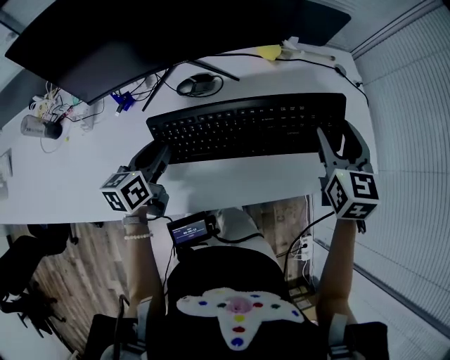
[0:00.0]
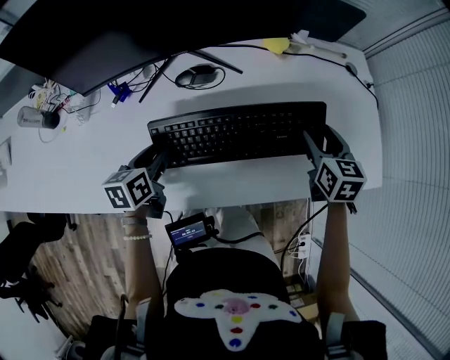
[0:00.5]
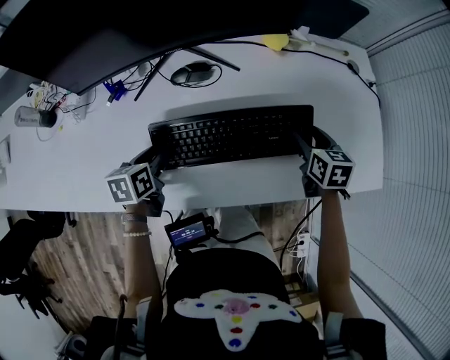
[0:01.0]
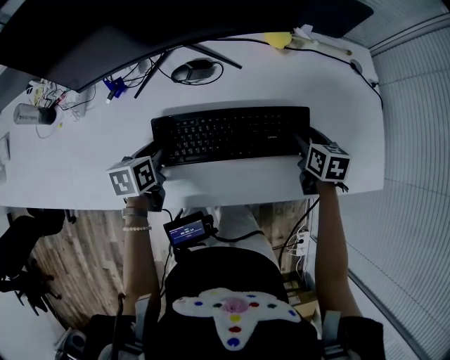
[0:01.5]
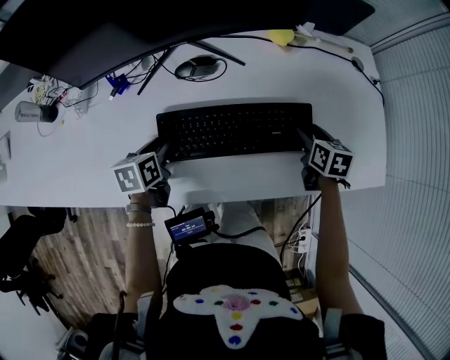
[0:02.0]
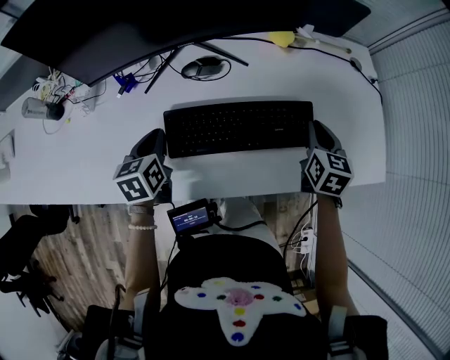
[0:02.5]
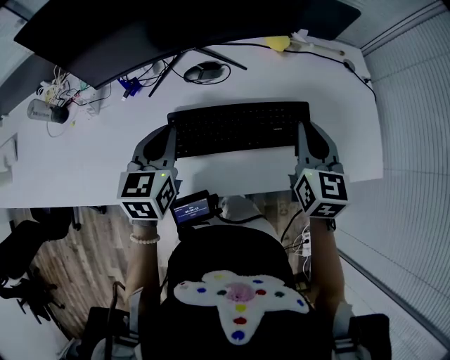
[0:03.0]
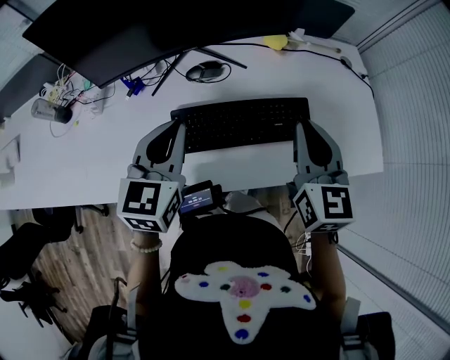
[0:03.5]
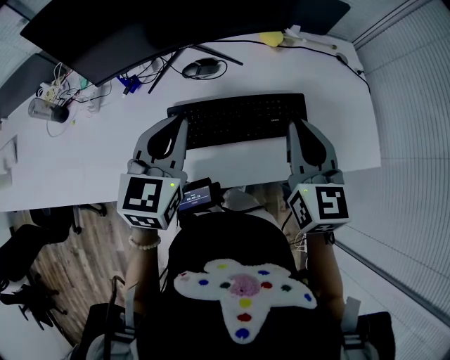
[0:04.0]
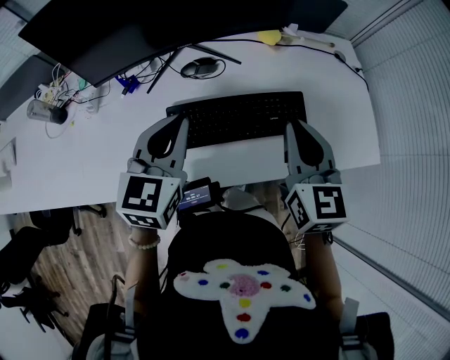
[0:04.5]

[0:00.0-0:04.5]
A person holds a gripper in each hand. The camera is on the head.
0:00.0 to 0:02.0: The right gripper goes roughly 25 cm downward, and rotates approximately 30 degrees, while the left gripper is displaced downward by approximately 10 cm, and rotates roughly 20 degrees.
0:02.0 to 0:04.5: The left gripper heads upward, covering roughly 25 cm, turns by roughly 50 degrees, and closes up, while the right gripper goes about 30 cm upward, to the left and backward, angles its fingers upward, by about 30 degrees, and closes its fingers.

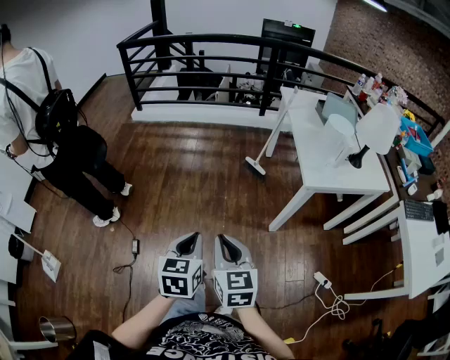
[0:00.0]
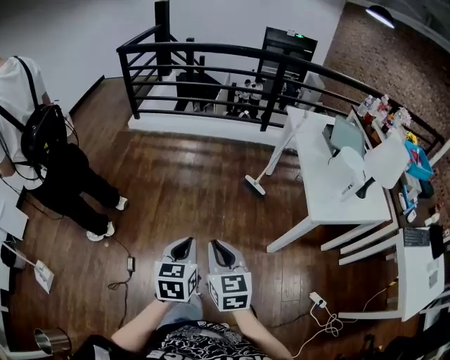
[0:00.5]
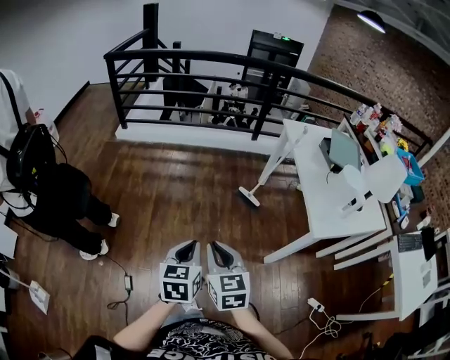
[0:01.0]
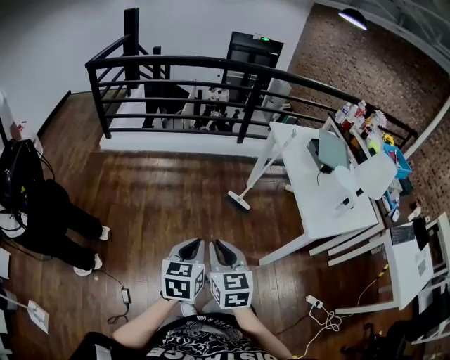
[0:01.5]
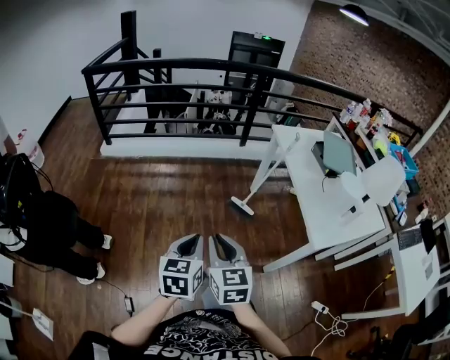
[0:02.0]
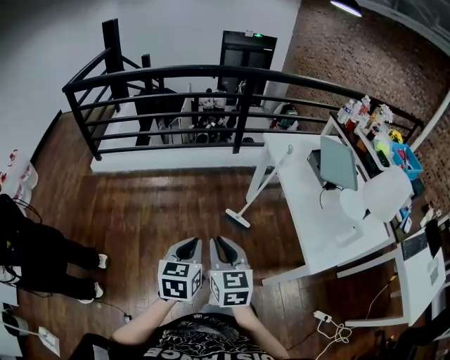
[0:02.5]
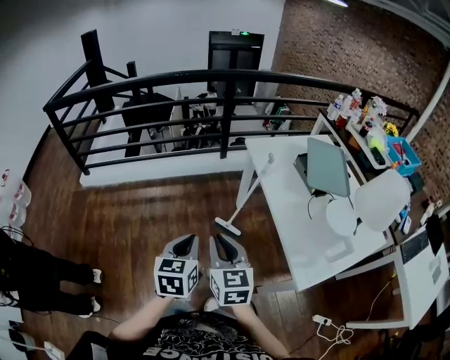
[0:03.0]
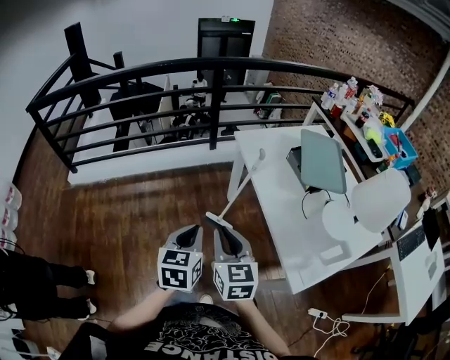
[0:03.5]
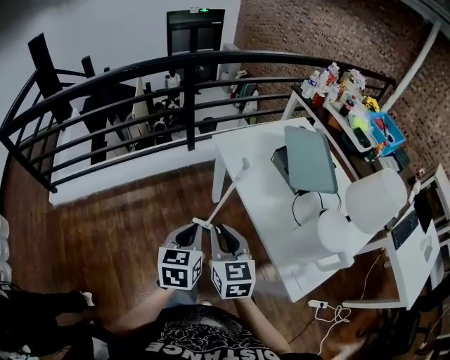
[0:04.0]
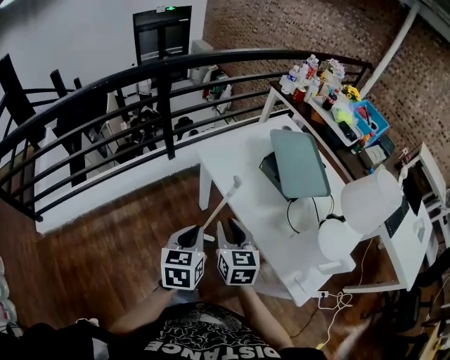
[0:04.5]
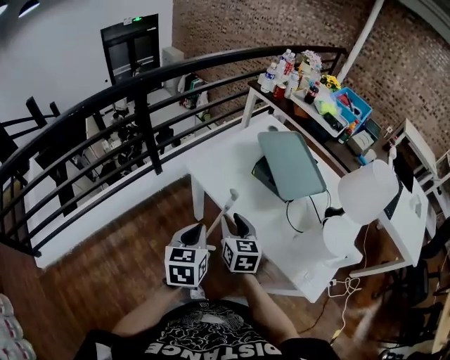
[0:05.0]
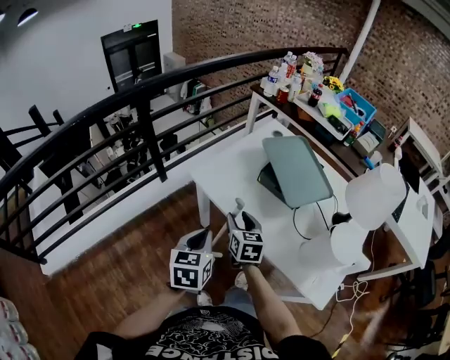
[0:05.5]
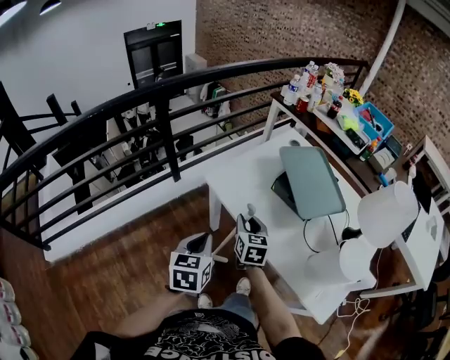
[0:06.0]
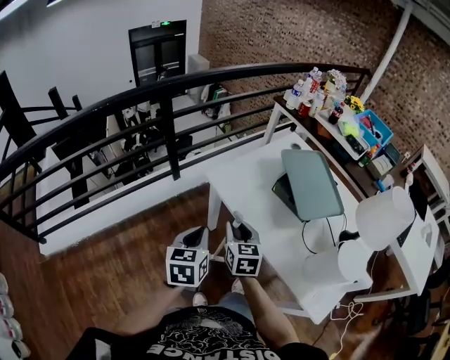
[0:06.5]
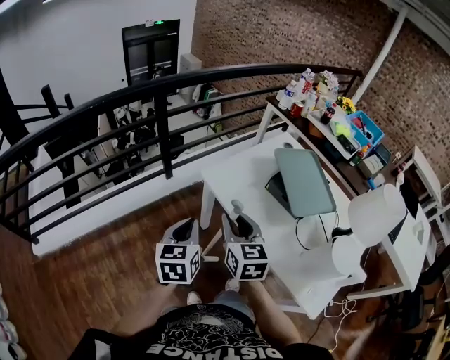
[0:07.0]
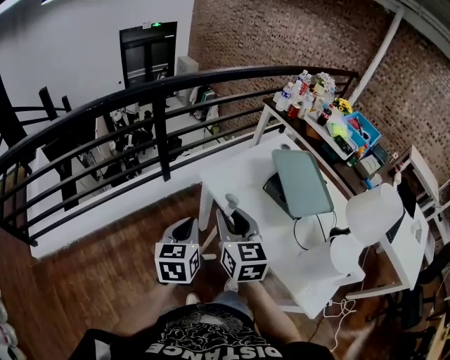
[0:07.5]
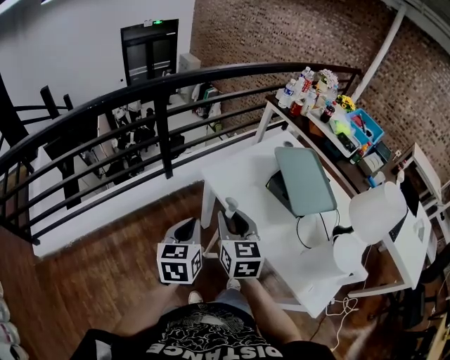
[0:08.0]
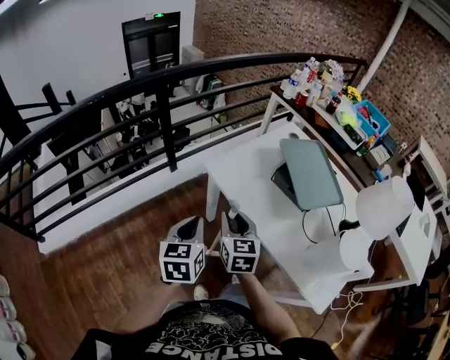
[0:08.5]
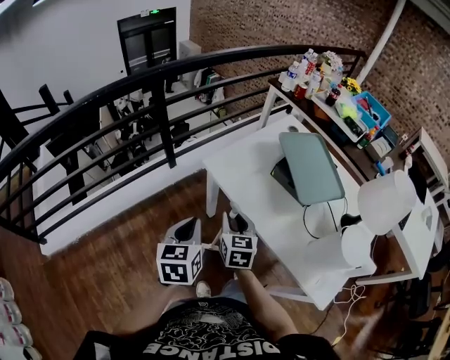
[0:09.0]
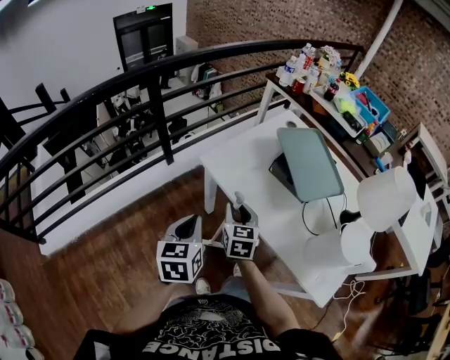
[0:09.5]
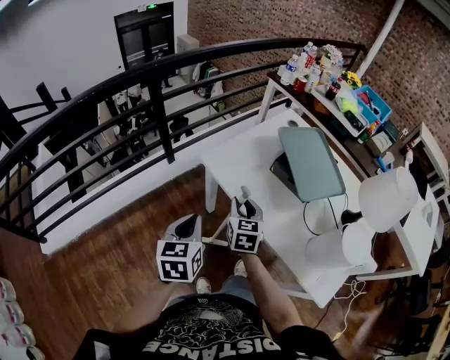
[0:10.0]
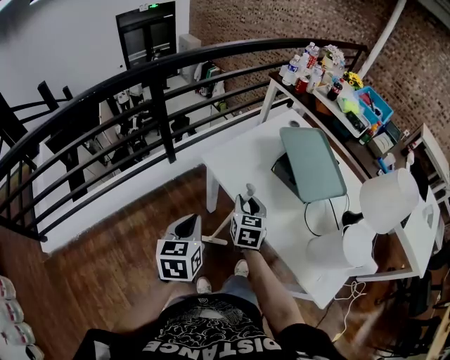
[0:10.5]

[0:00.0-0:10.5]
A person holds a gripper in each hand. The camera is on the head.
0:00.0 to 0:02.0: Both grippers move forward, roughly 30 cm.
0:02.0 to 0:04.0: The two grippers travel together, forward and to the right, approximately 40 cm.
0:04.0 to 0:06.5: Both grippers move forward, approximately 20 cm.
0:06.5 to 0:08.5: The right gripper reaches some 15 cm upward, then returns.
0:08.5 to 0:10.5: The right gripper moves forward, to the right and downward, roughly 10 cm.

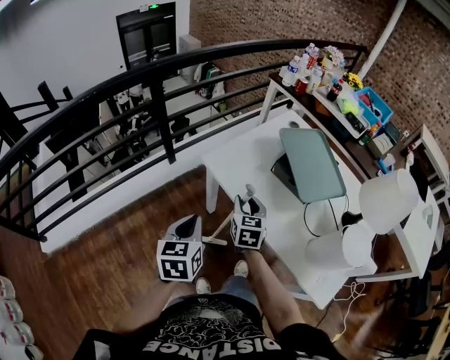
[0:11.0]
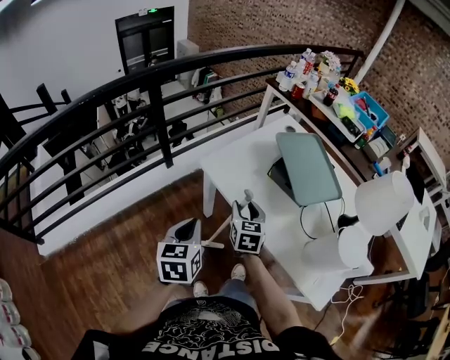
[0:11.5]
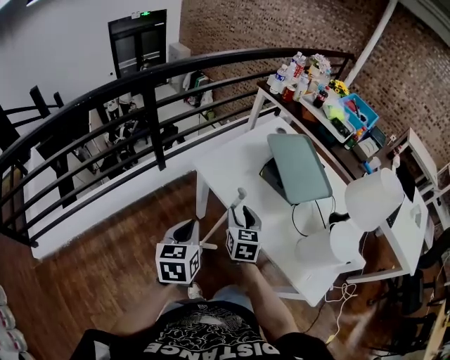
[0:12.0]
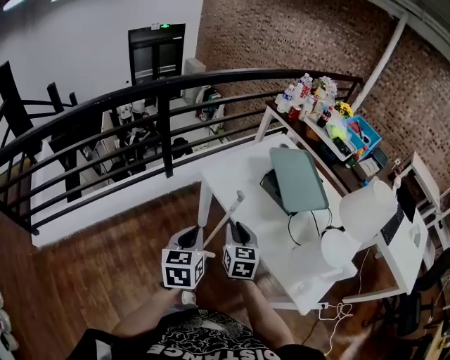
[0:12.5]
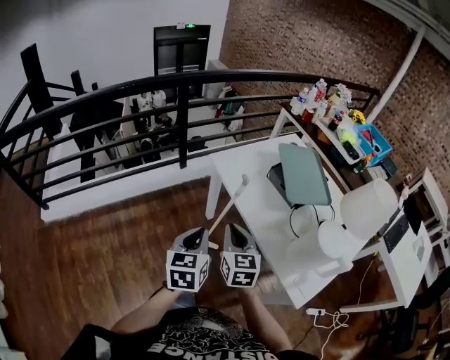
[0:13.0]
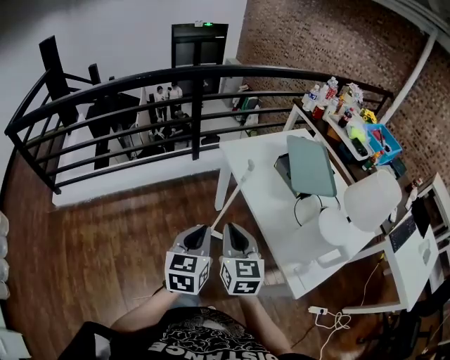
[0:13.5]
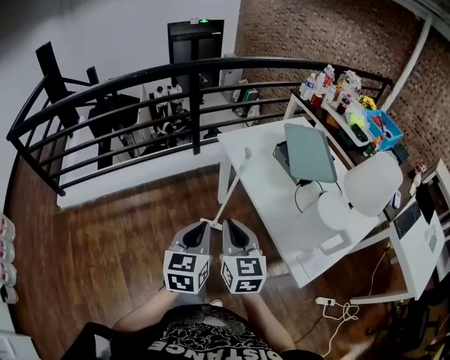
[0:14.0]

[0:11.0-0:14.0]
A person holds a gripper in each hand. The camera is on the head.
0:11.0 to 0:12.5: The left gripper travels backward by approximately 5 cm, while the right gripper travels backward by approximately 10 cm.
0:12.5 to 0:14.0: The left gripper is displaced backward by approximately 20 cm; the right gripper is displaced backward and upward by approximately 25 cm, and swivels some 20 degrees.

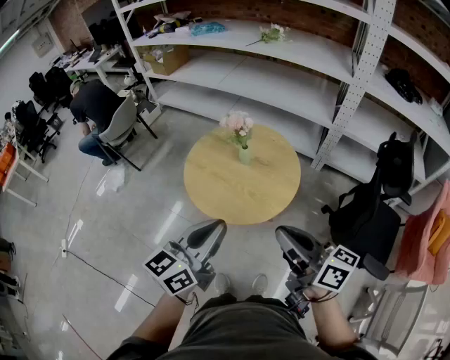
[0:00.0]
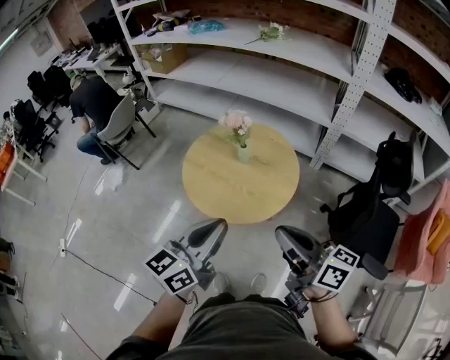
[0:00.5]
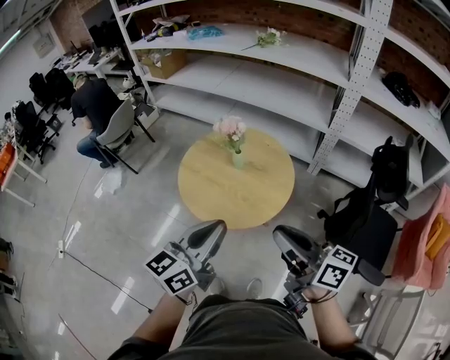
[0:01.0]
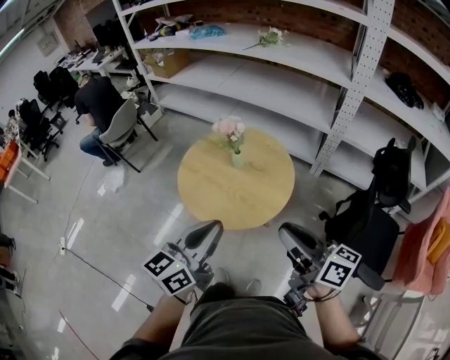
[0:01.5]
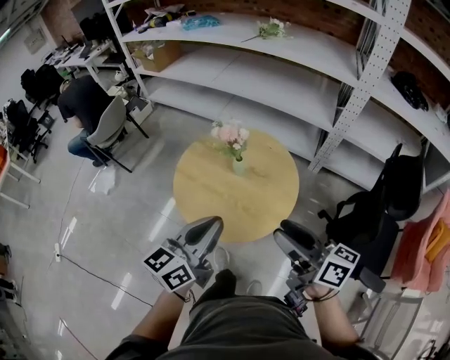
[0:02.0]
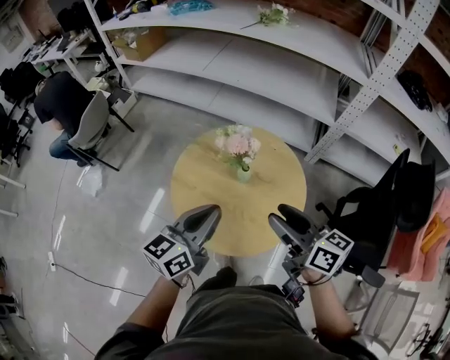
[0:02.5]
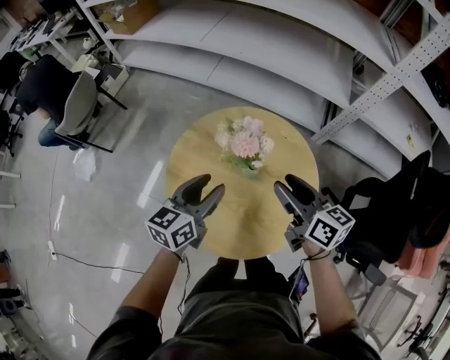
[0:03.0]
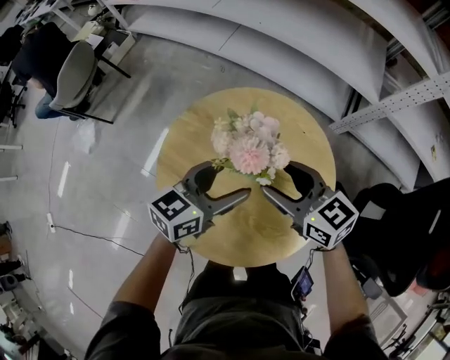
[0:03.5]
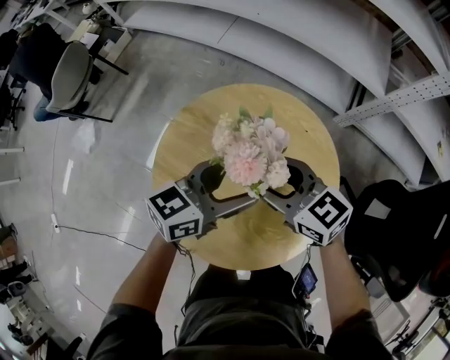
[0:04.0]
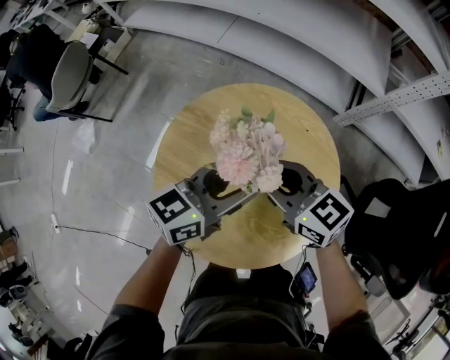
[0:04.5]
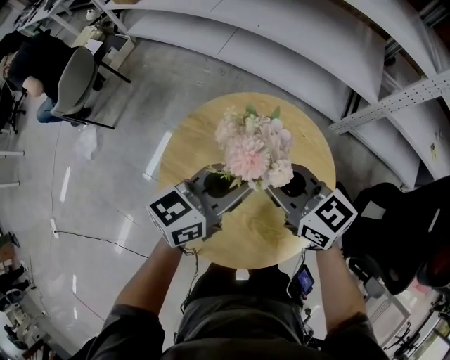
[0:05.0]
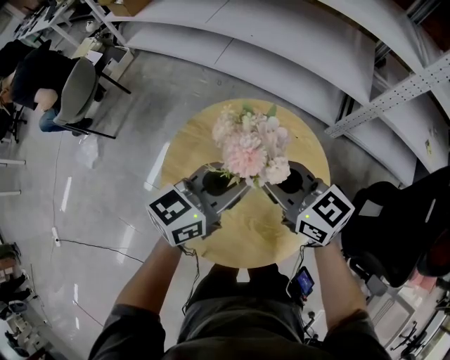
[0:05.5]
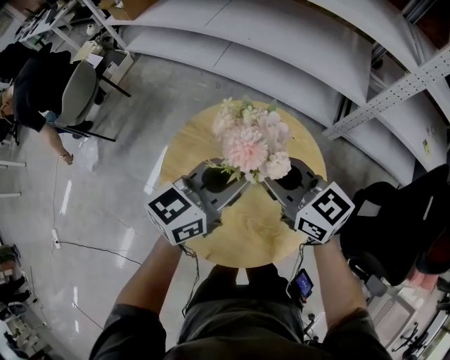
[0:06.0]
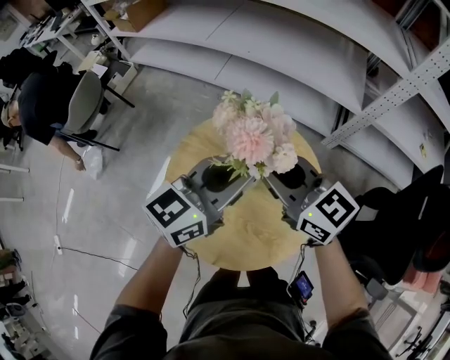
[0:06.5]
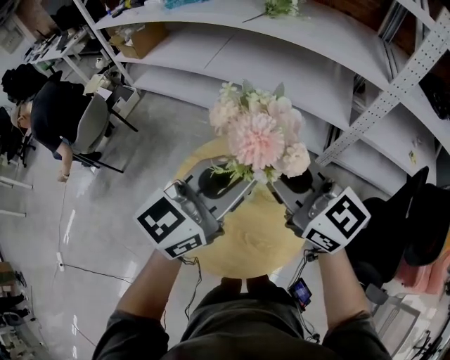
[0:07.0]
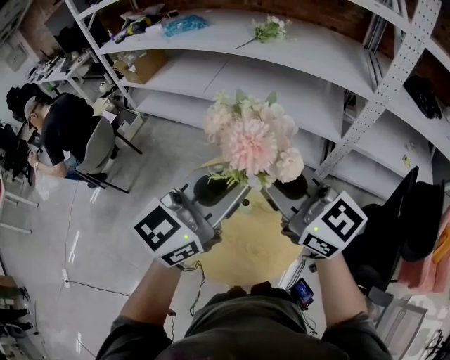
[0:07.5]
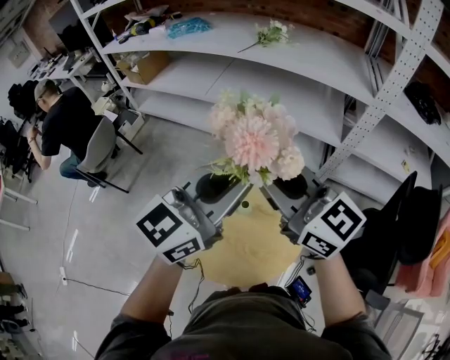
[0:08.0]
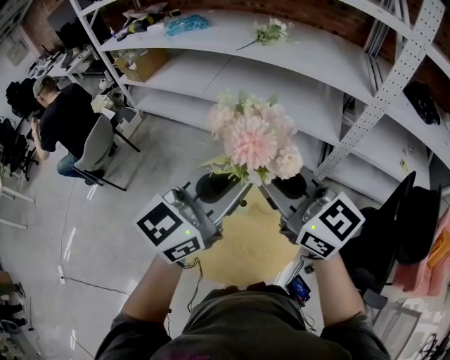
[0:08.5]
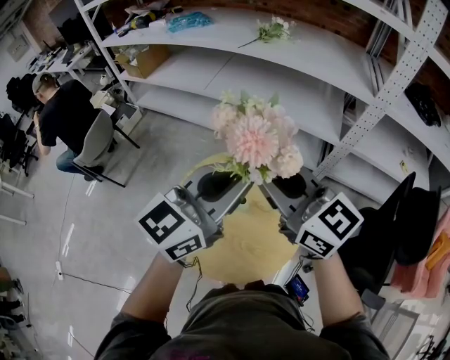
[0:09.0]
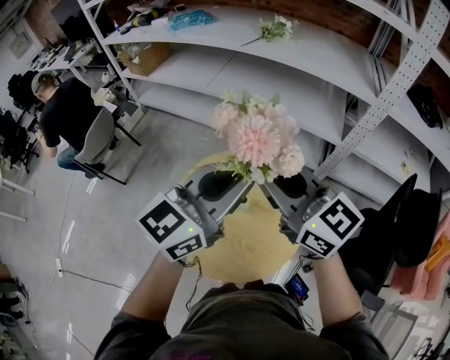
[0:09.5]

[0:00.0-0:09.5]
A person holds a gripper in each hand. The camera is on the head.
0:00.0 to 0:02.0: Both grippers move forward, approximately 10 cm. The right gripper opens.
0:02.0 to 0:04.0: Both grippers move forward and downward, roughly 40 cm. The left gripper changes its angle by approximately 20 degrees, and opens. The right gripper rotates roughly 40 degrees.
0:04.0 to 0:05.5: Both grippers travel together upward, approximately 10 cm. The right gripper closes. The left gripper closes up.
0:05.5 to 0:07.5: The grippers both shift upward by some 25 cm. The right gripper changes its angle by some 20 degrees; the left gripper rotates approximately 20 degrees.
0:07.5 to 0:09.5: Both grippers stay put.
